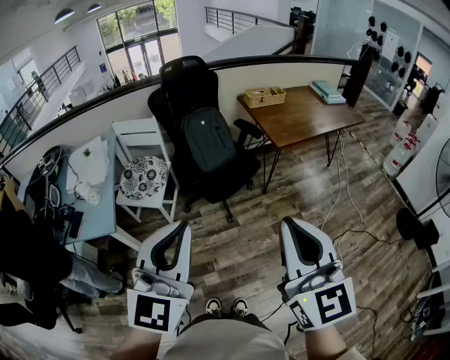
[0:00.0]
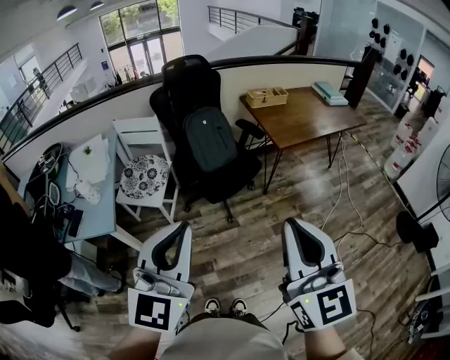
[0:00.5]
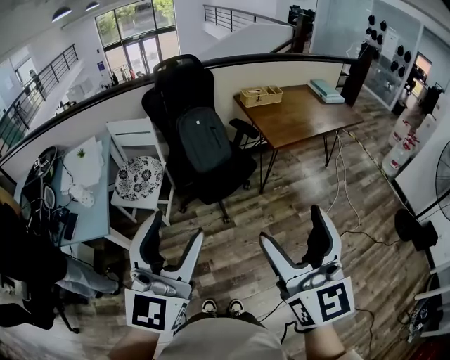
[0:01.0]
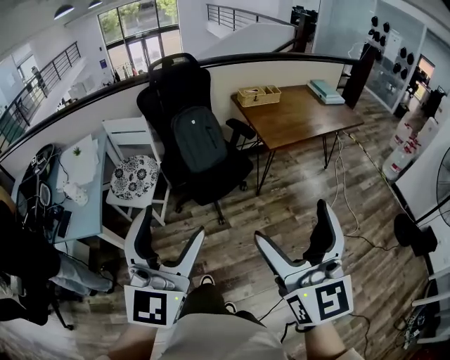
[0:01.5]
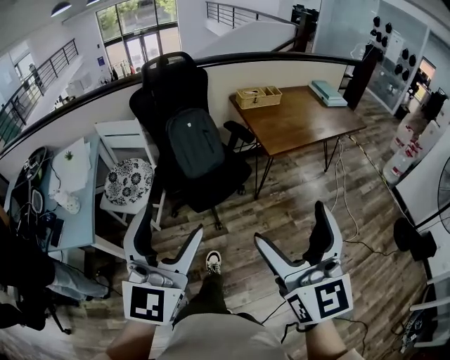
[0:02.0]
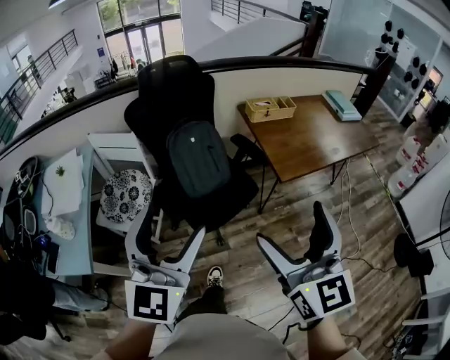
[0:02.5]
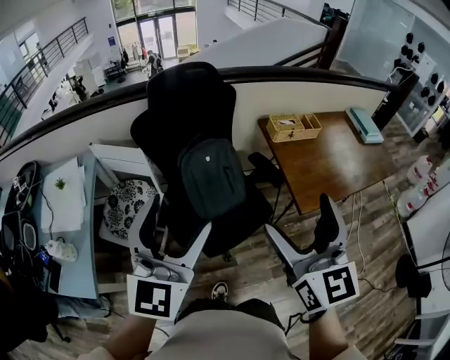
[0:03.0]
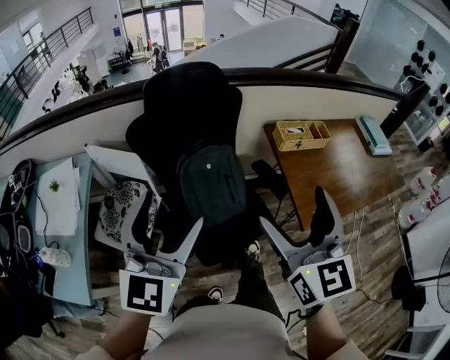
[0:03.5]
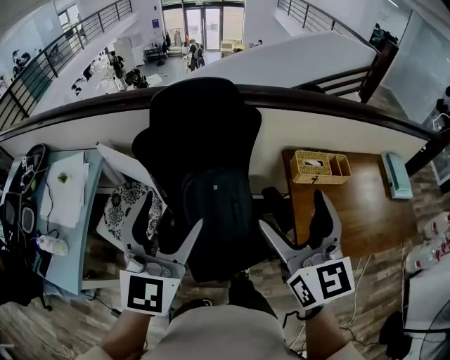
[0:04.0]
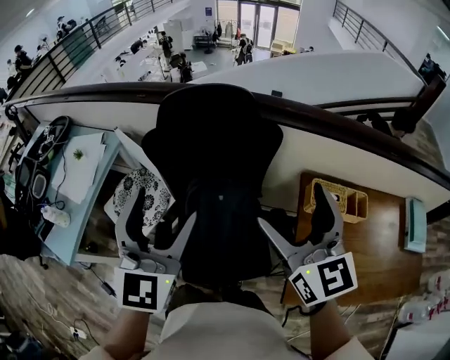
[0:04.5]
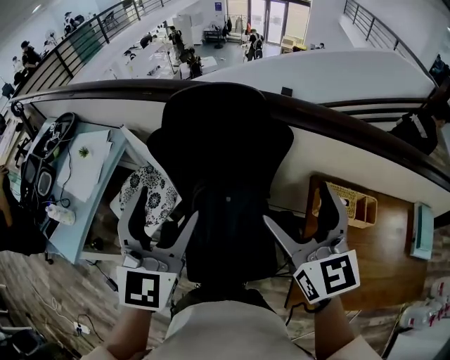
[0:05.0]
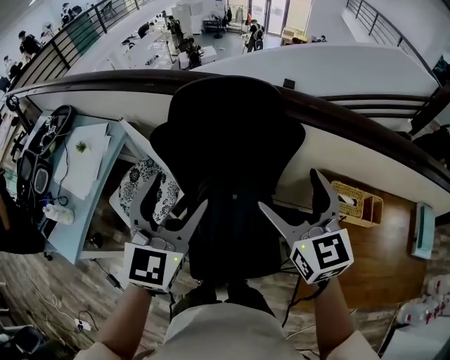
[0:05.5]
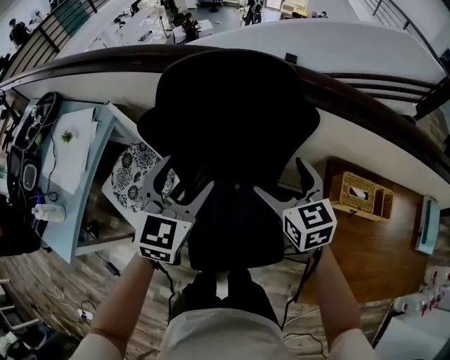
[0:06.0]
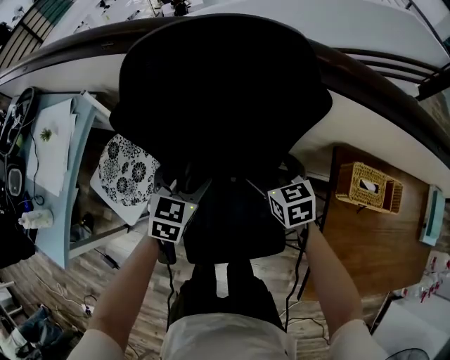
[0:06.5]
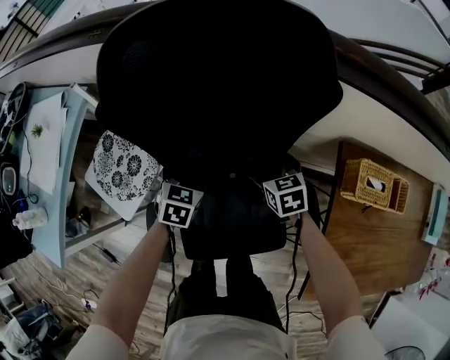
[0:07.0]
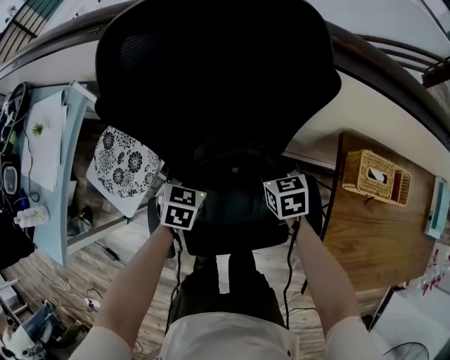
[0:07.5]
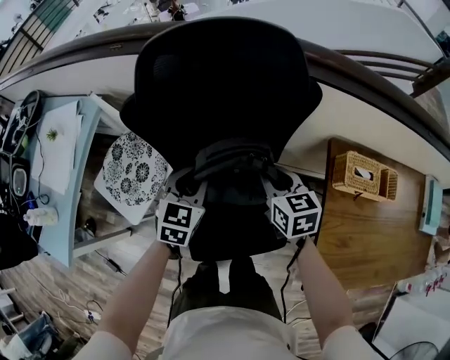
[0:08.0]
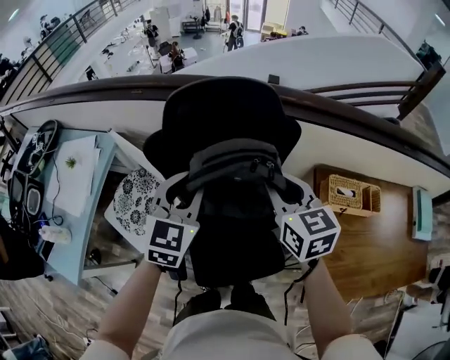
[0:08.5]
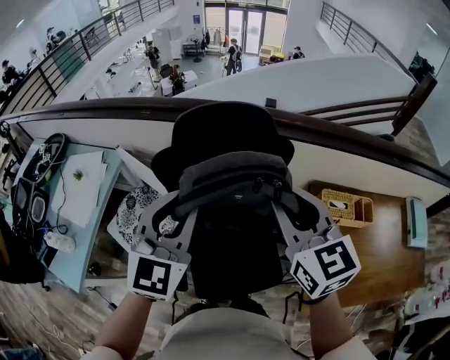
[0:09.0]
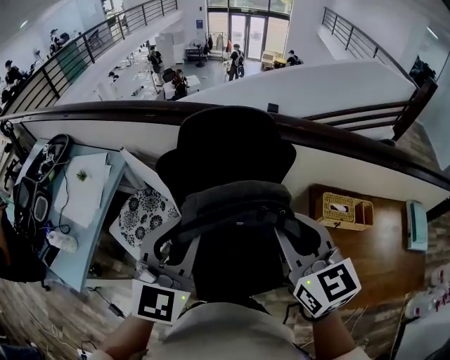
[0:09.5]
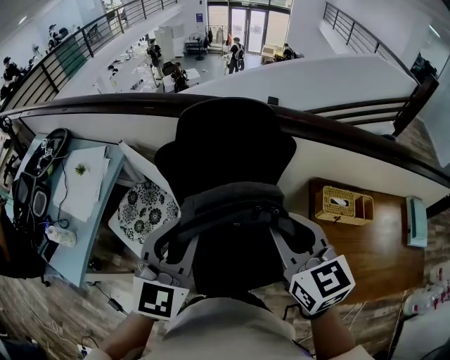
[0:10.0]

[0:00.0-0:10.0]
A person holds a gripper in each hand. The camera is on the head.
0:00.0 to 0:02.0: The grippers both shift forward and to the right by roughly 15 cm. The right gripper opens up; the left gripper opens its fingers.
0:02.0 to 0:04.0: Both grippers are carried forward, approximately 60 cm.
0:04.0 to 0:06.0: The two grippers go roughly 30 cm forward and downward. The right gripper swivels approximately 30 degrees.
0:06.0 to 0:08.0: The grippers both shift downward by approximately 15 cm. The right gripper closes. Meanwhile the left gripper closes.
0:08.0 to 0:10.0: Both grippers move upward and backward, roughly 35 cm. The right gripper changes its angle by some 20 degrees, while the left gripper turns by approximately 30 degrees.

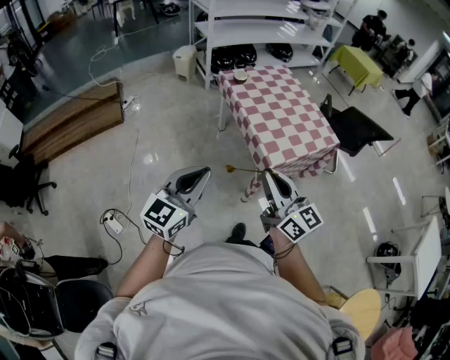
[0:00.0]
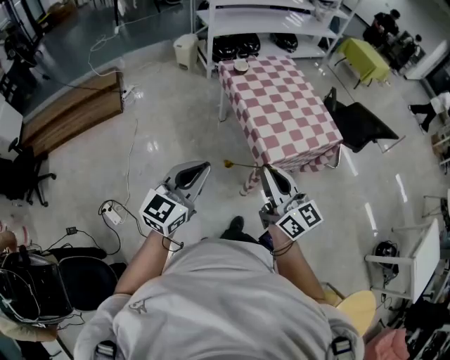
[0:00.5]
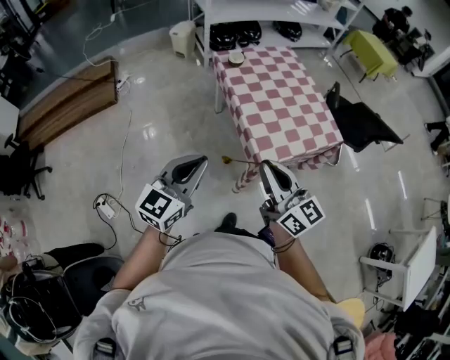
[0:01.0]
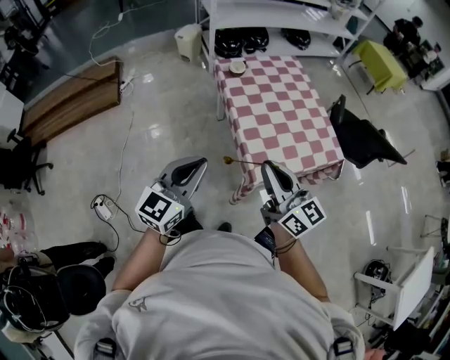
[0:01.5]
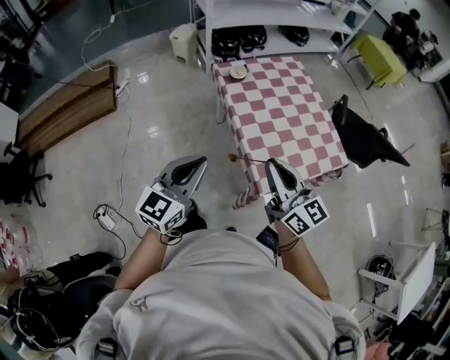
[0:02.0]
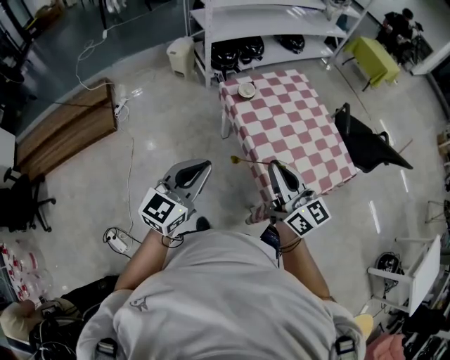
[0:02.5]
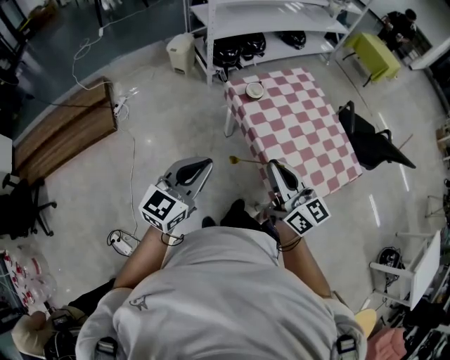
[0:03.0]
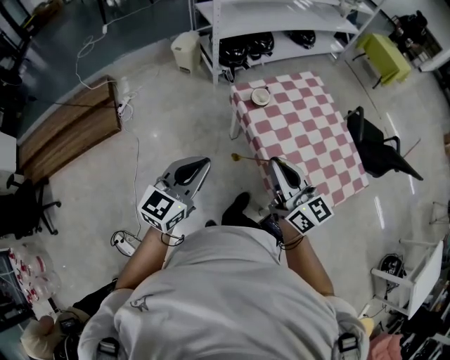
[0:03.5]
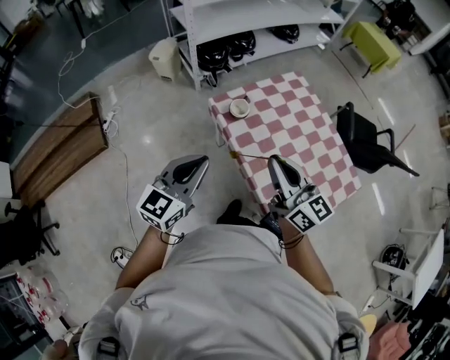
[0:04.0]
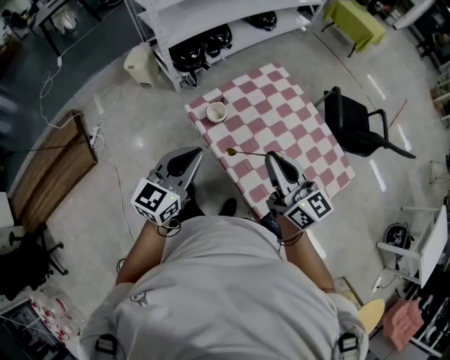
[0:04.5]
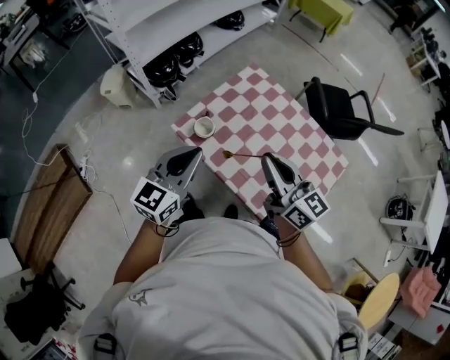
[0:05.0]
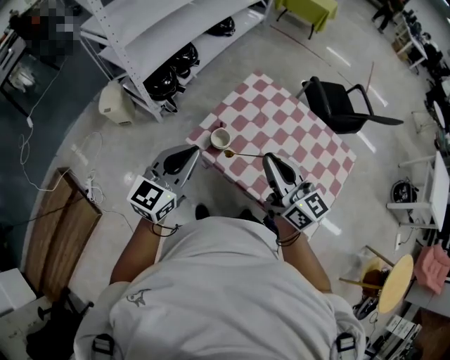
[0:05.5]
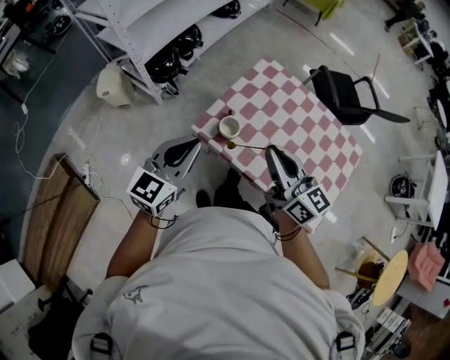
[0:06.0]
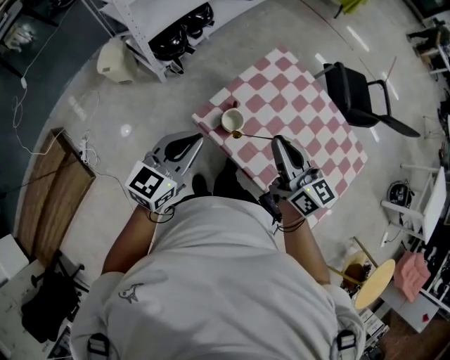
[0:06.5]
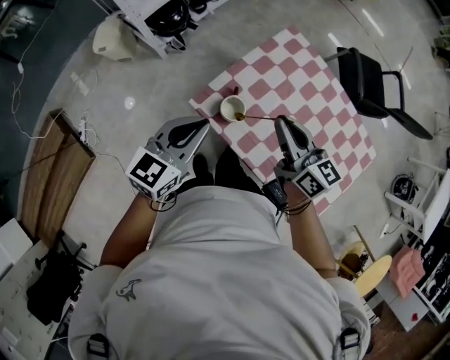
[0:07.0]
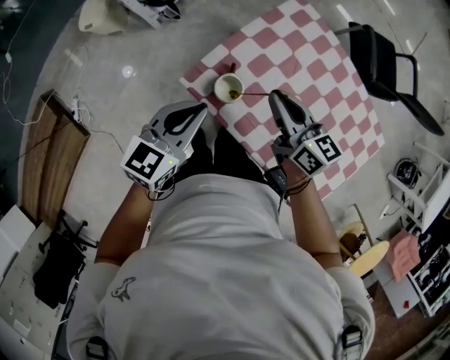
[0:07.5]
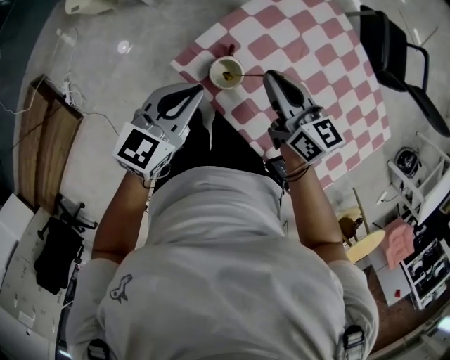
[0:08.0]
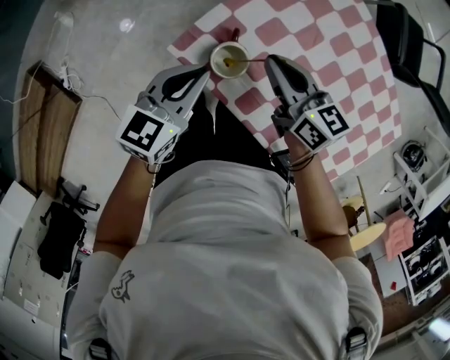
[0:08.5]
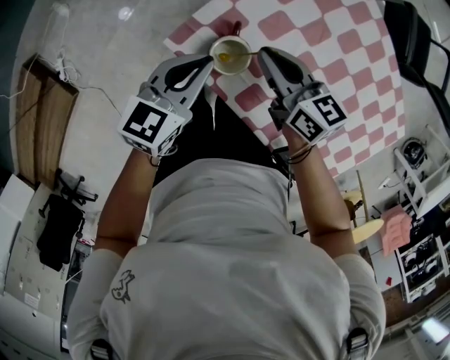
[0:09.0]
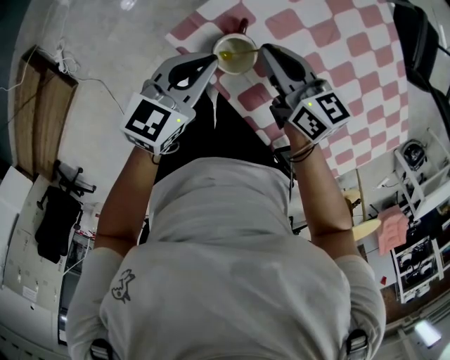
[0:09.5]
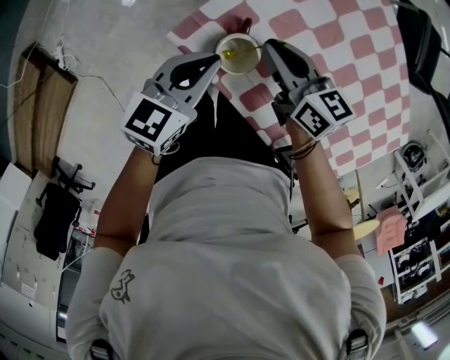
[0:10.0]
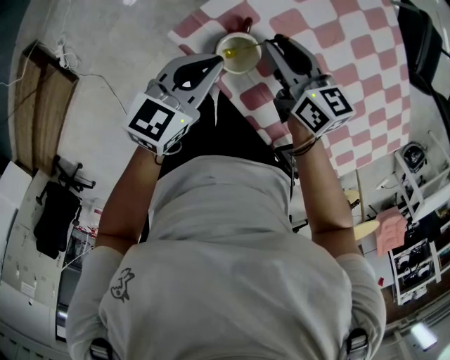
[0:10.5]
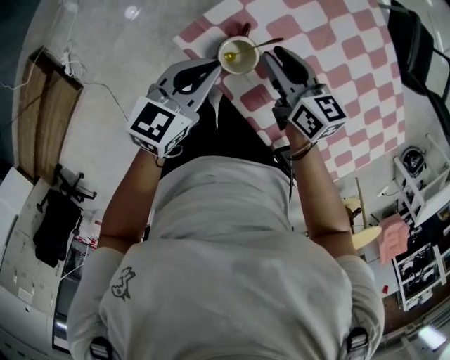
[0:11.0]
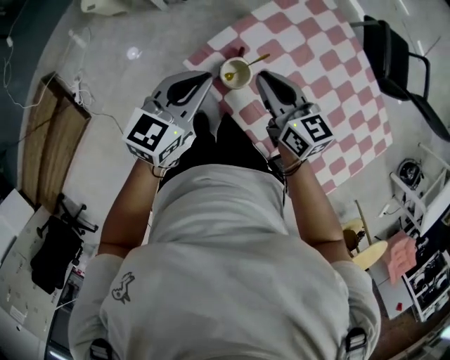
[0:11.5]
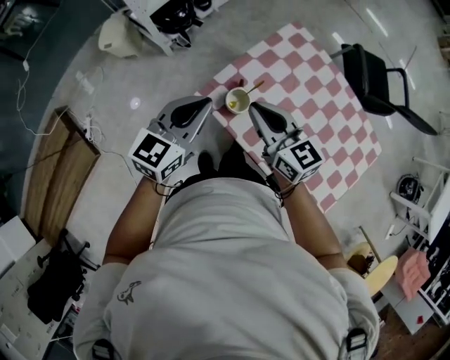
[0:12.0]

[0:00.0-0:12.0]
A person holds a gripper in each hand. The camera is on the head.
0:00.0 to 0:02.0: Both grippers travel together forward, some 25 cm.
0:02.0 to 0:04.0: The two grippers go some 30 cm forward.
0:04.0 to 0:06.0: The grippers both shift forward and to the left by approximately 20 cm. The left gripper turns by roughly 20 degrees; the right gripper changes its angle by approximately 20 degrees.
0:06.0 to 0:08.0: Both grippers move downward and forward, some 25 cm. The right gripper rotates approximately 20 degrees.
0:08.0 to 0:10.0: Both grippers move downward, approximately 10 cm.
0:10.0 to 0:12.0: The left gripper is displaced upward by about 20 cm, and swivels approximately 20 degrees, while the right gripper is displaced upward and backward by some 25 cm, changes its angle by roughly 30 degrees, and opens and closes again.

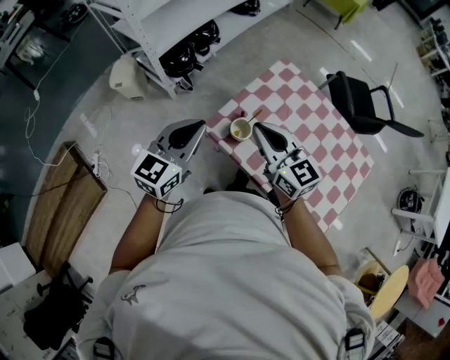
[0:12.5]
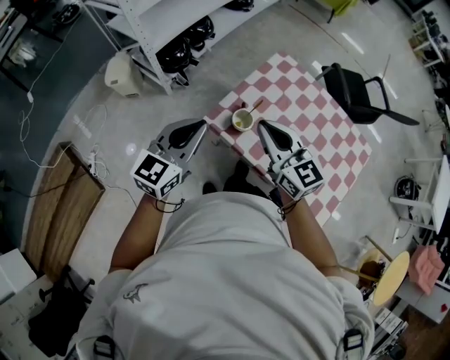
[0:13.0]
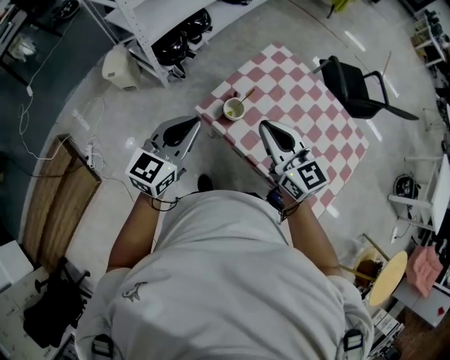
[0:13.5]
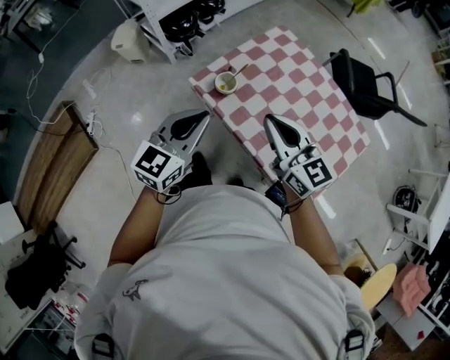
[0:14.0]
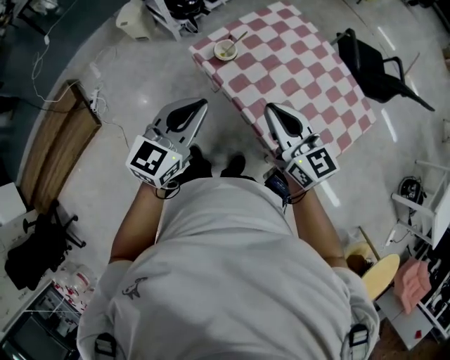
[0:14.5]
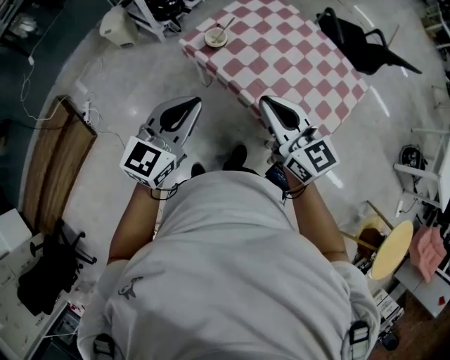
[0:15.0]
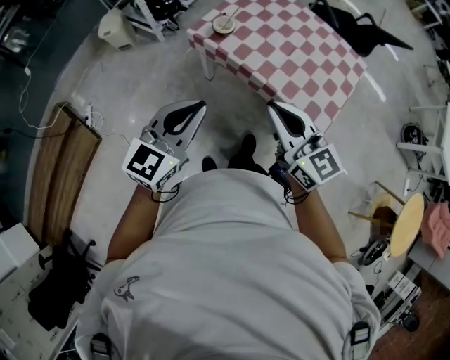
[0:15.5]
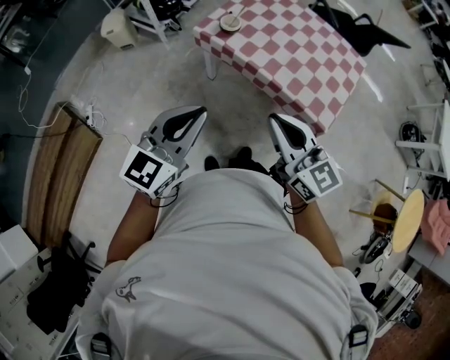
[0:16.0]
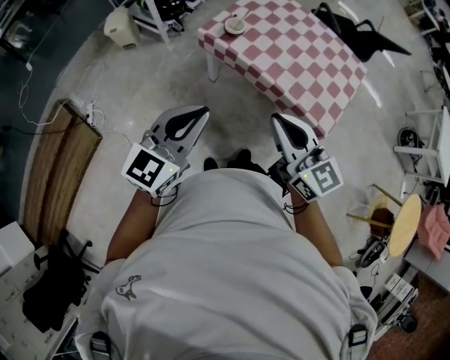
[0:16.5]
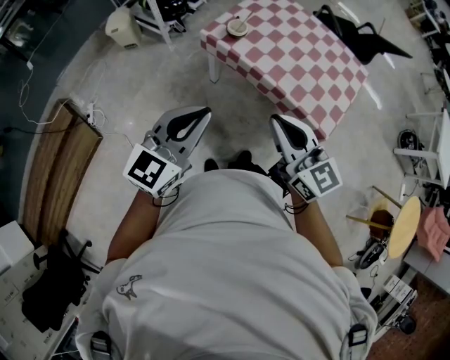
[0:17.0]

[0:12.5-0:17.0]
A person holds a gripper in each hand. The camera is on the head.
0:12.5 to 0:14.5: Both grippers travel together backward and to the right, approximately 25 cm.
0:14.5 to 0:17.0: Both grippers move backward and to the left, about 25 cm.
